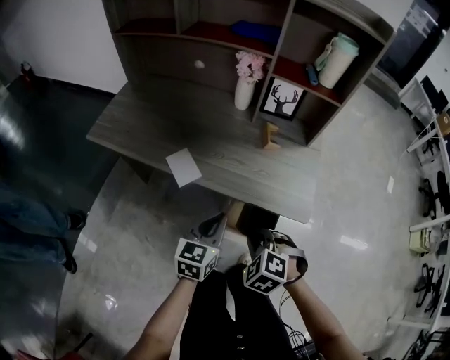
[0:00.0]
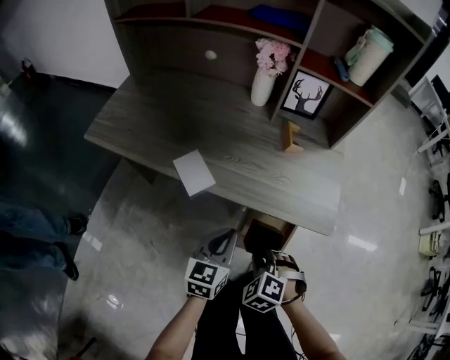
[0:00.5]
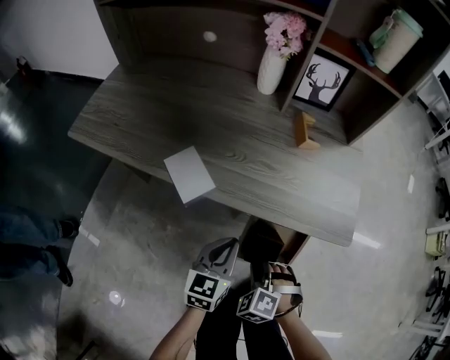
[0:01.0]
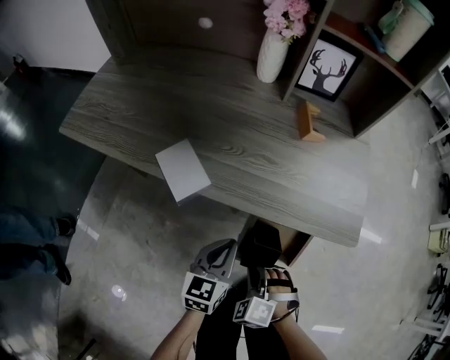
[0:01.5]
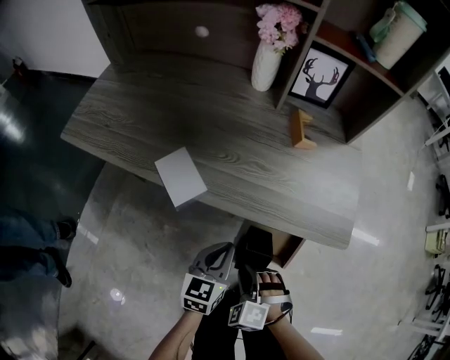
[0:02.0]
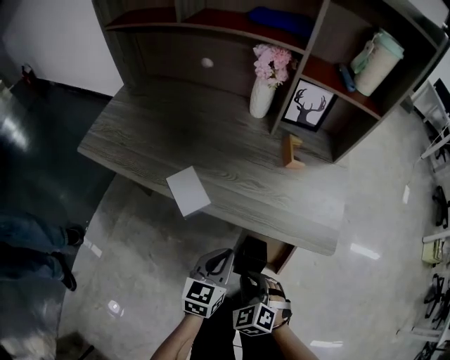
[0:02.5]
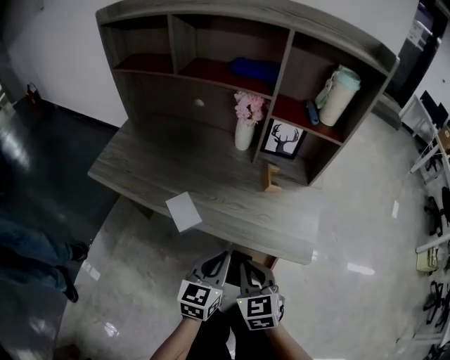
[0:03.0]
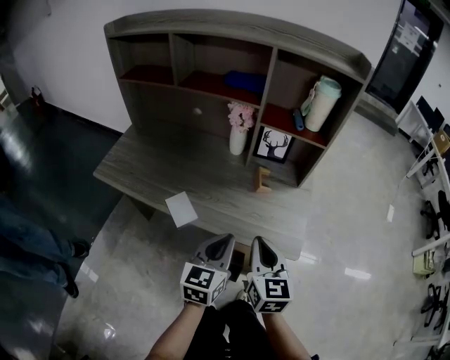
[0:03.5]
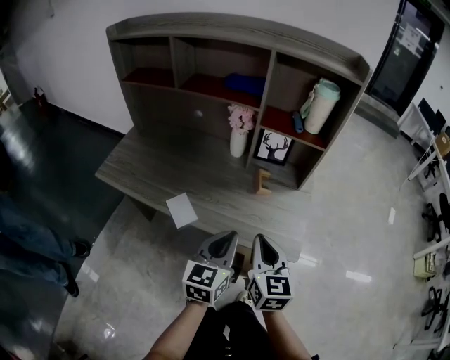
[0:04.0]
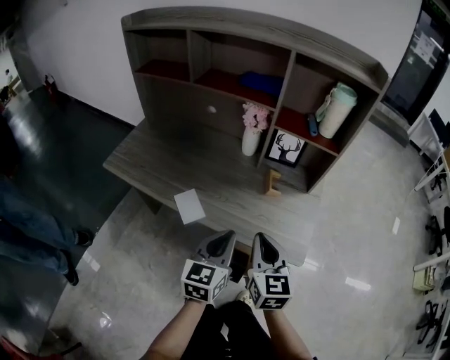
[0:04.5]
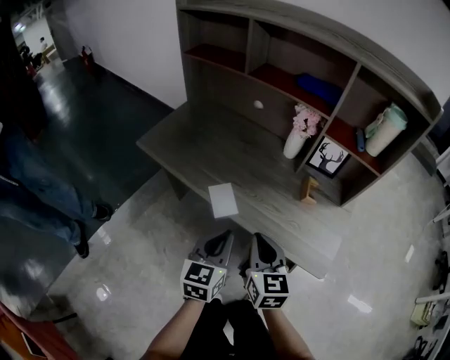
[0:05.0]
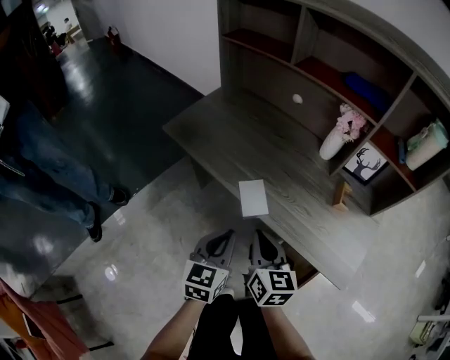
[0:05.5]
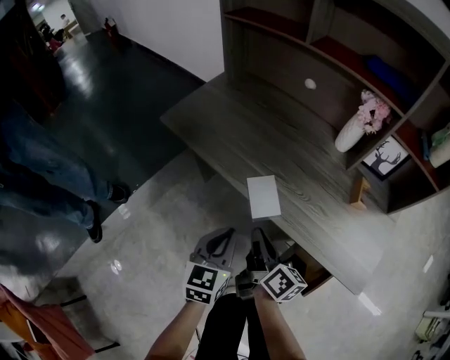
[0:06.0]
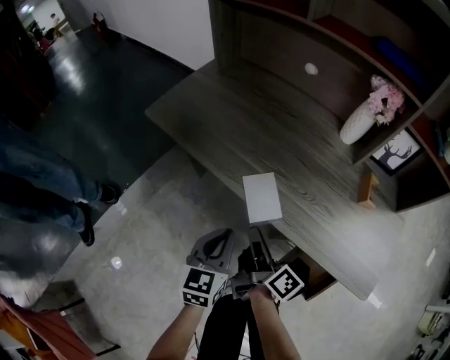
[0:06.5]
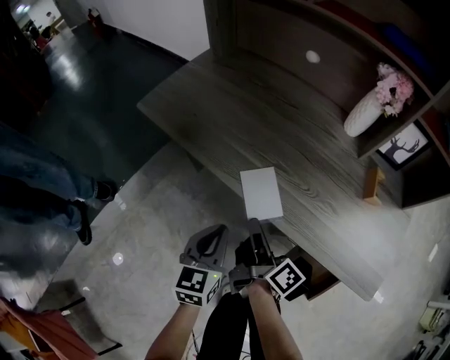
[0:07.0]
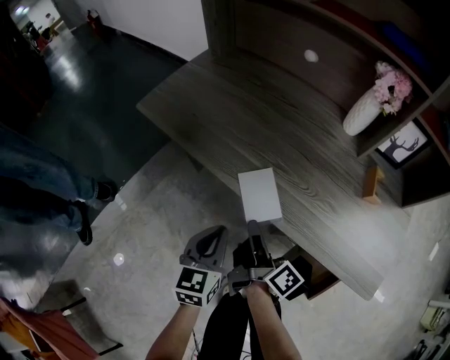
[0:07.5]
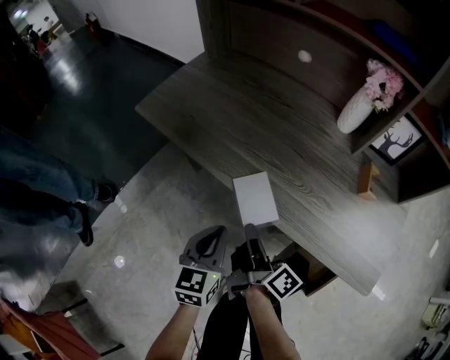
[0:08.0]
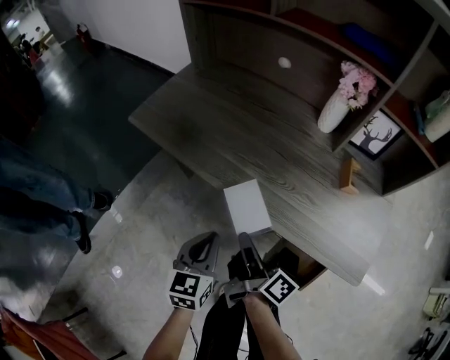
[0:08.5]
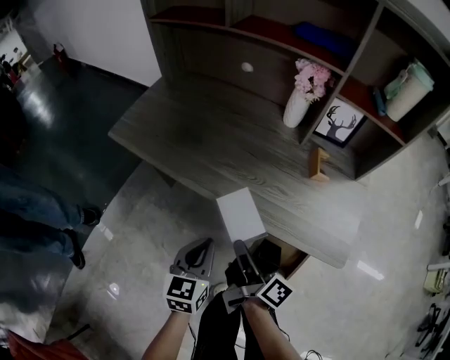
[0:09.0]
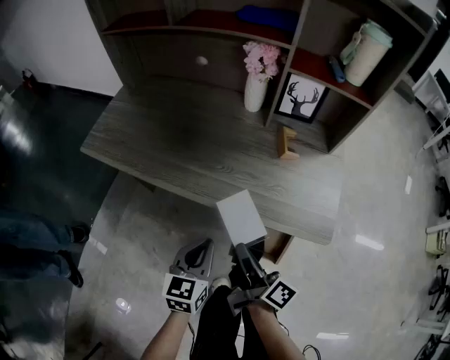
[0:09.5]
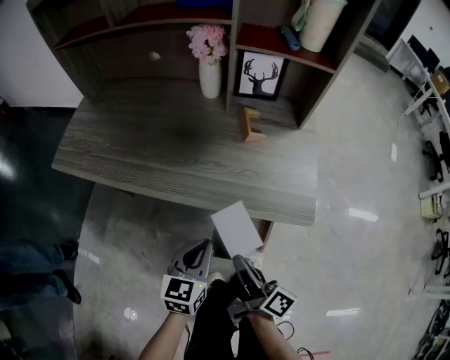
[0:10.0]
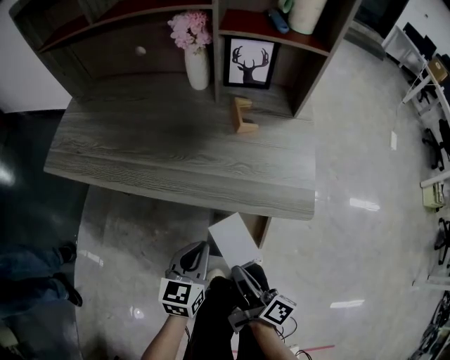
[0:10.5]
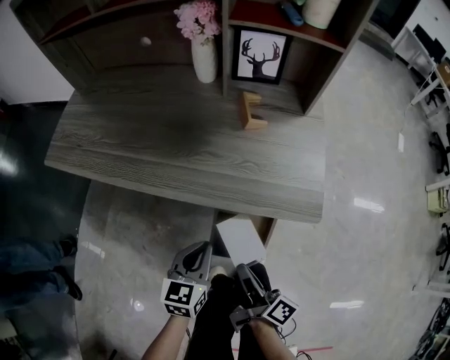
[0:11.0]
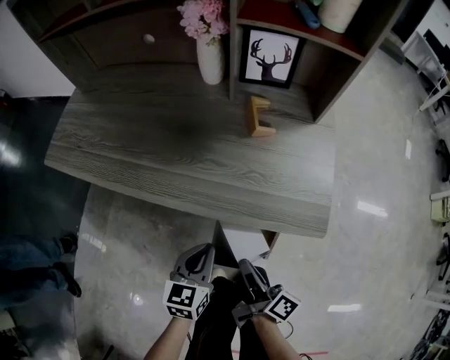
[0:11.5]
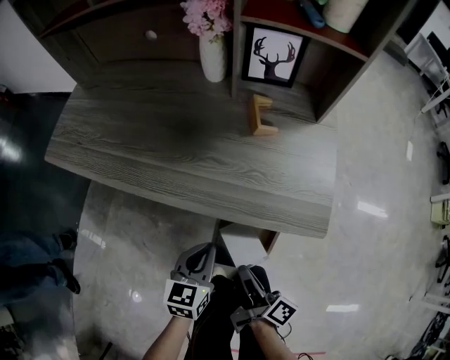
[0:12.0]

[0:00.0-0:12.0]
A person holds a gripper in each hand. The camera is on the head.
0:00.0 to 0:02.0: The grippers both shift downward by approximately 20 cm. The right gripper opens up.
0:02.0 to 0:04.0: Both grippers move upward, about 30 cm. The right gripper twists approximately 60 degrees clockwise, seen from behind, and closes.
0:04.0 to 0:06.0: The left gripper ends up approximately 25 cm from where it was, and rotates some 30 degrees. Meanwhile the right gripper moves some 30 cm, and twists about 50 degrees clockwise, seen from behind.
0:06.0 to 0:08.0: The grippers both shift downward by roughly 5 cm. The right gripper turns by roughly 20 degrees.
0:08.0 to 0:10.0: The grippers both shift to the right and backward by roughly 25 cm. The left gripper rotates roughly 30 degrees.
0:10.0 to 0:12.0: The grippers both shift downward by approximately 5 cm.

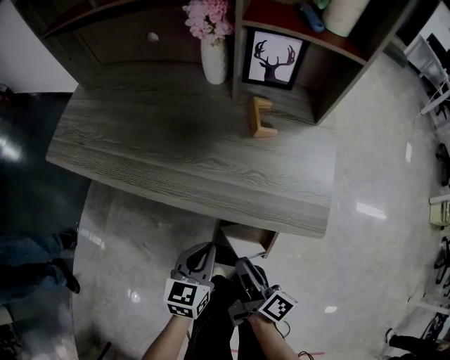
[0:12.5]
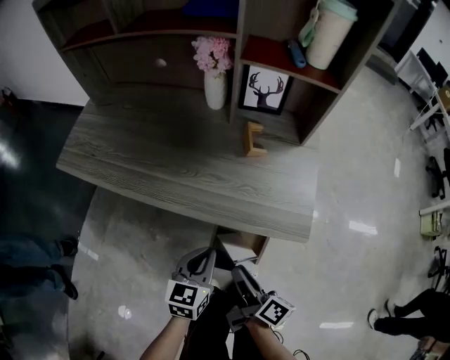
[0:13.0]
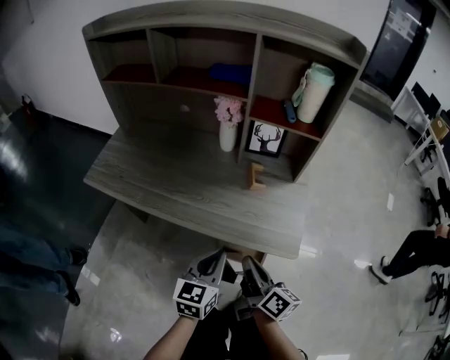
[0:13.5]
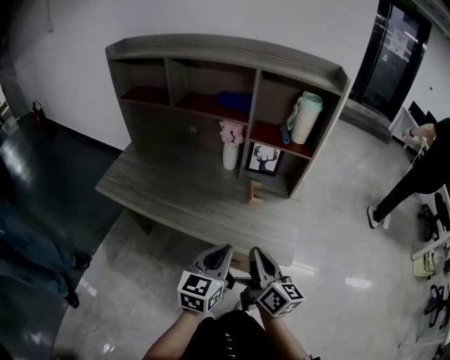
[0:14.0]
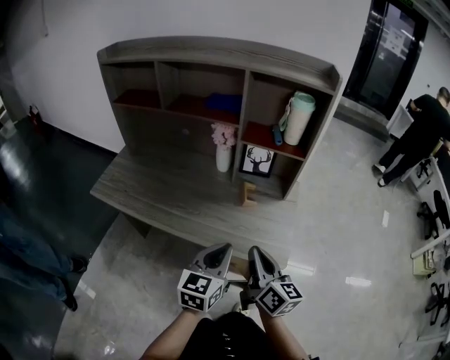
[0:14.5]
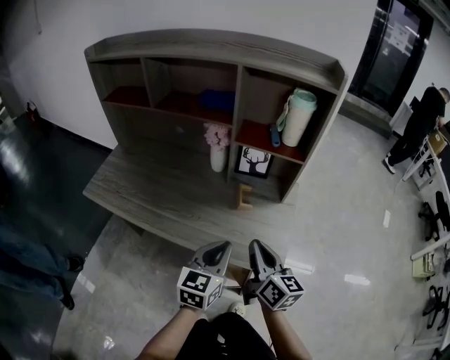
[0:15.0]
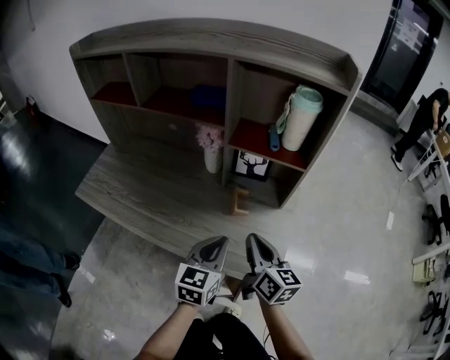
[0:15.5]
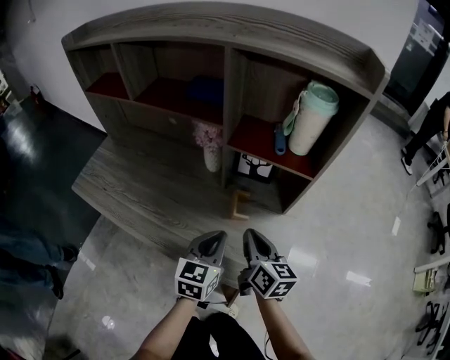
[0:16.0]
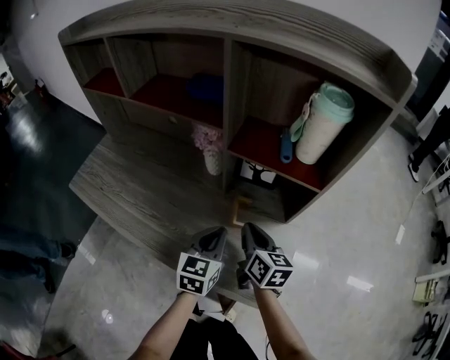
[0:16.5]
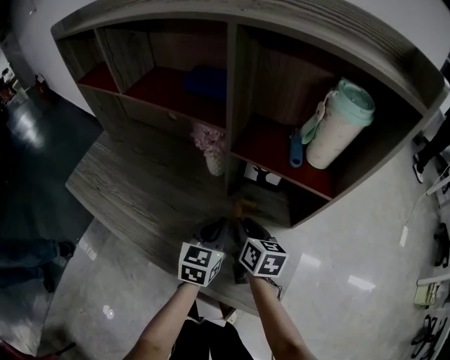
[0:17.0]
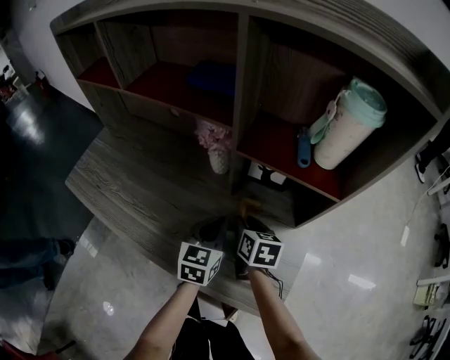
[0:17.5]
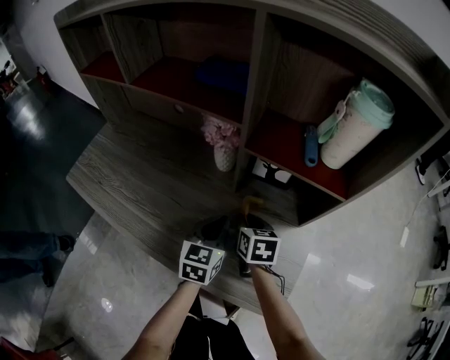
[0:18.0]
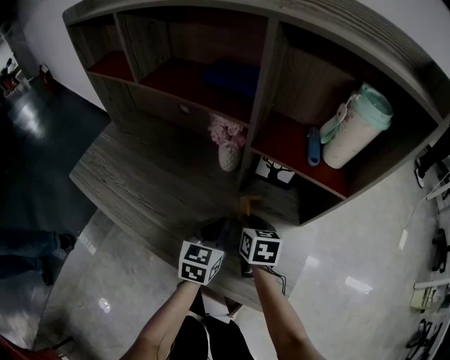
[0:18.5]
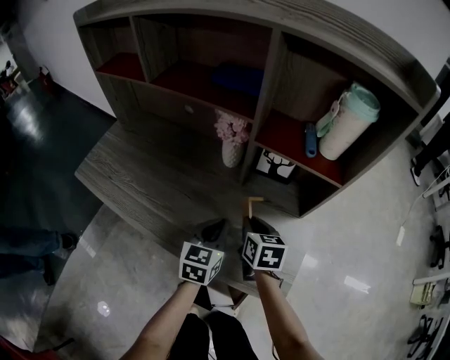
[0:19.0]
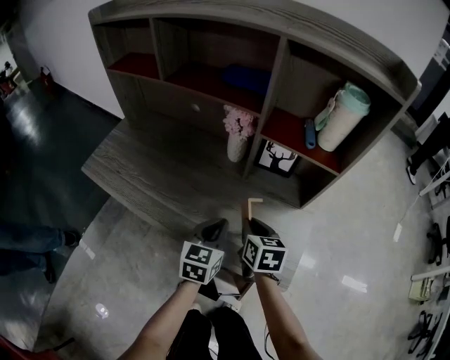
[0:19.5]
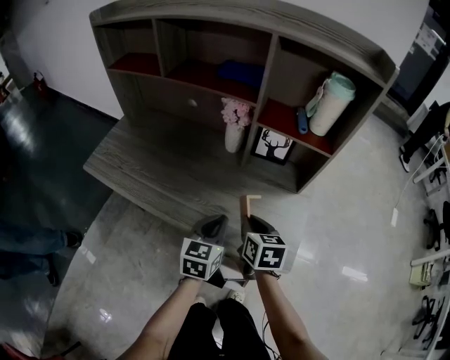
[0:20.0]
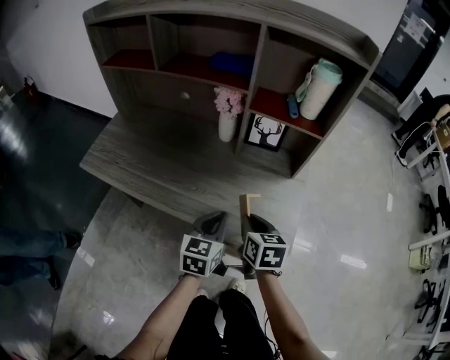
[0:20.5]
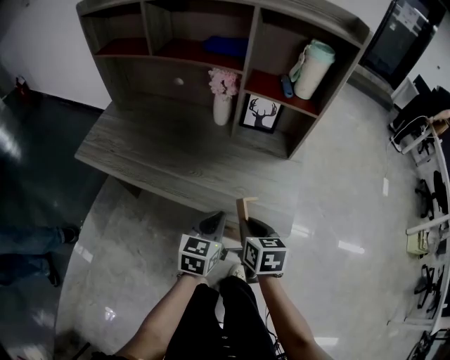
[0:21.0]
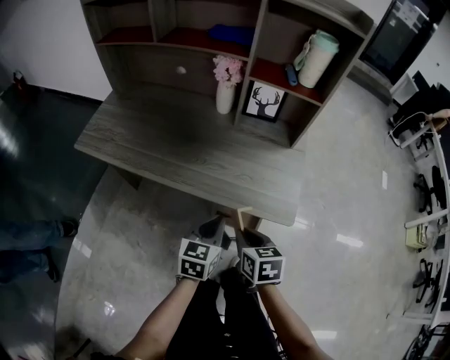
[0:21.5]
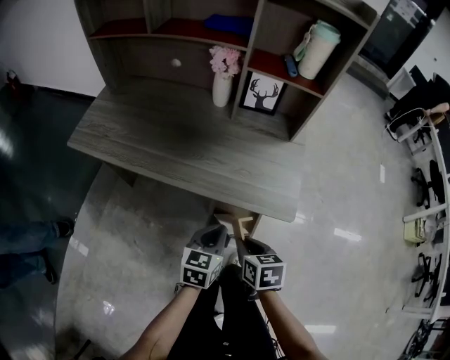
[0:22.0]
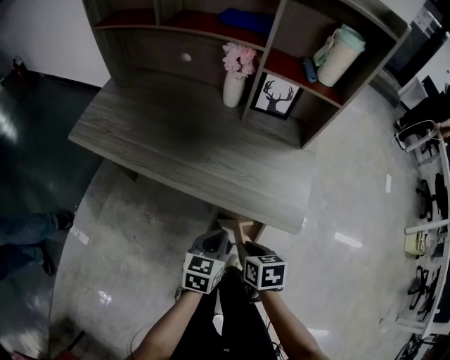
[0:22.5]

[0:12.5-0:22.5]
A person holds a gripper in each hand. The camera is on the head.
0:12.5 to 0:14.5: The two grippers go about 25 cm upward. The right gripper rolls counterclockwise, seen from behind, by about 40 degrees, and closes.
0:14.5 to 0:16.5: The grippers both shift forward and downward by approximately 25 cm.
0:16.5 to 0:18.5: The left gripper shifts by about 5 cm, while the right gripper is displaced downward by approximately 10 cm, and rotates about 20 degrees.
0:18.5 to 0:20.5: The left gripper shifts approximately 15 cm backward. Meanwhile the right gripper is displaced backward and upward by approximately 20 cm.
0:20.5 to 0:22.5: The grippers both shift backward and downward by roughly 15 cm. The right gripper changes its angle by roughly 20 degrees.

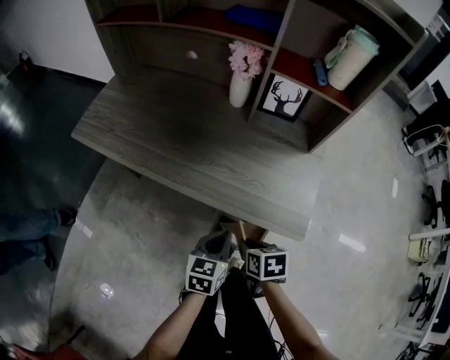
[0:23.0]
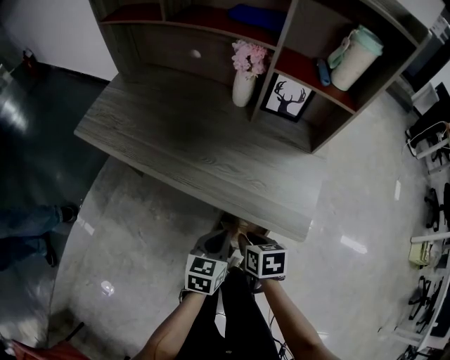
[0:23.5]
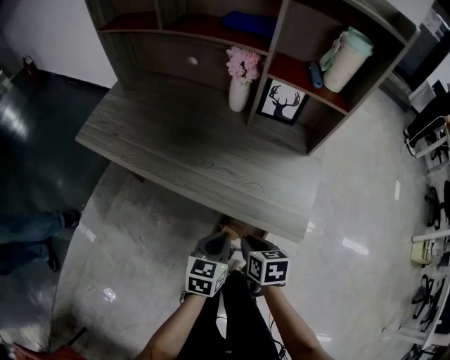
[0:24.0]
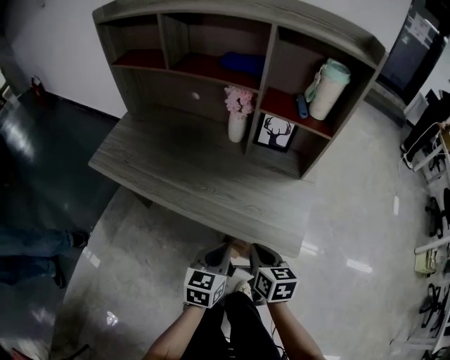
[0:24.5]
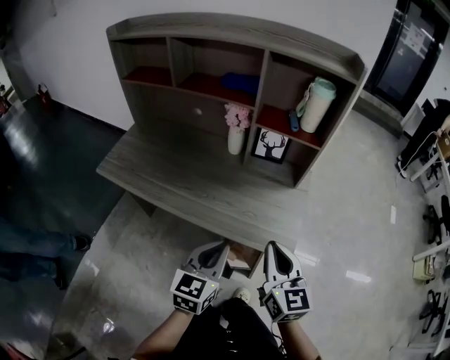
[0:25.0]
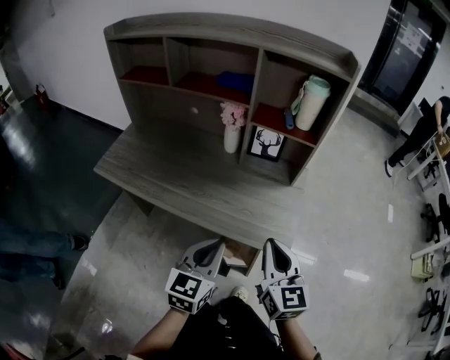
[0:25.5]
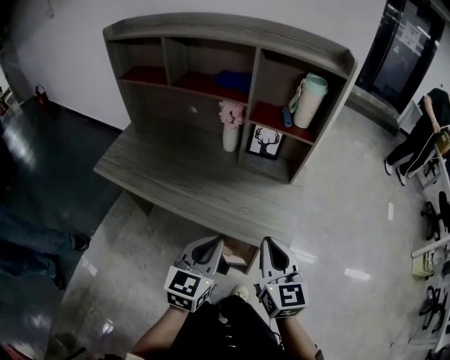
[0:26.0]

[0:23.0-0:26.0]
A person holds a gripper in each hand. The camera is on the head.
0:23.0 to 0:24.5: The grippers both shift upward by about 10 cm. The right gripper turns by approximately 30 degrees.
0:24.5 to 0:26.0: Both grippers travel together upward, some 15 cm. The right gripper changes its angle by approximately 30 degrees.

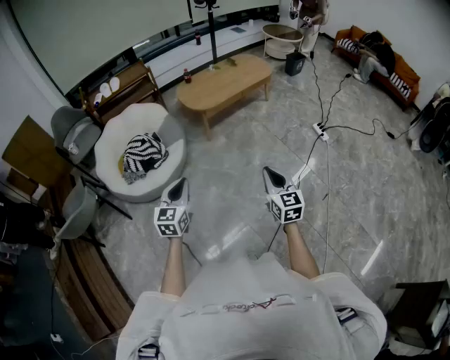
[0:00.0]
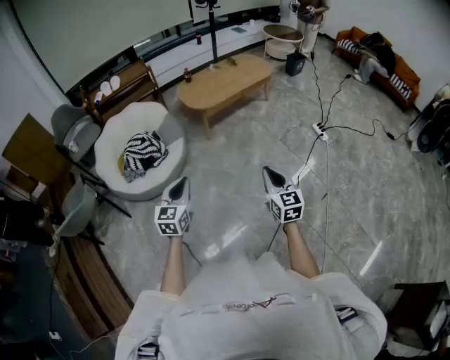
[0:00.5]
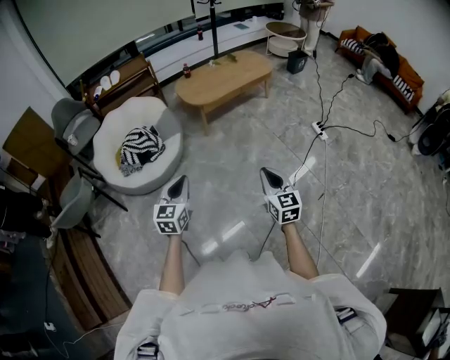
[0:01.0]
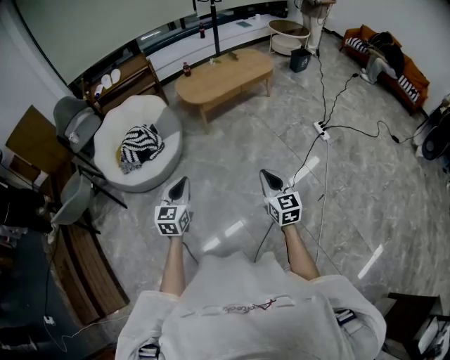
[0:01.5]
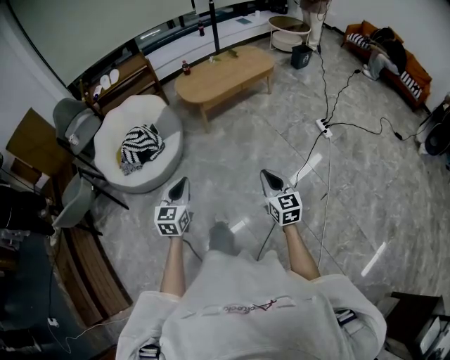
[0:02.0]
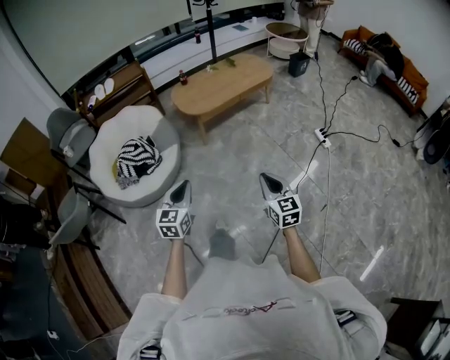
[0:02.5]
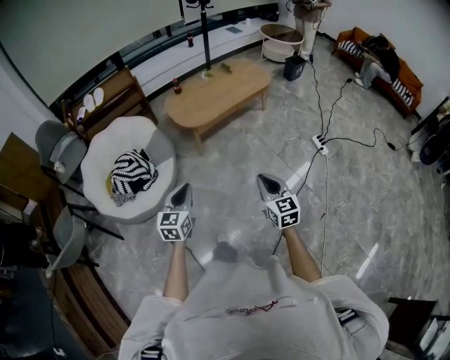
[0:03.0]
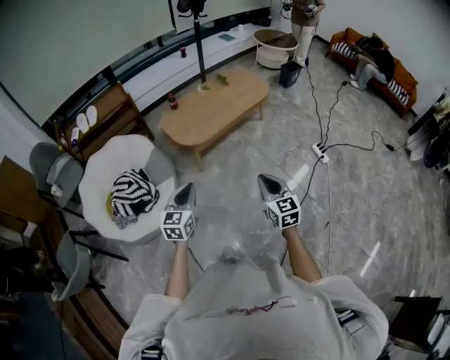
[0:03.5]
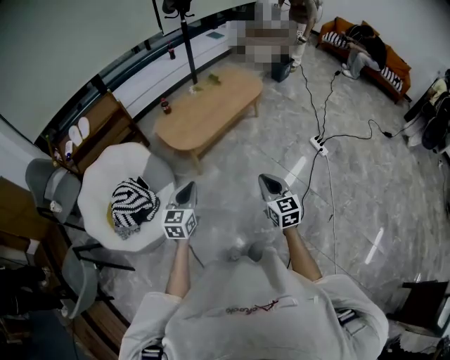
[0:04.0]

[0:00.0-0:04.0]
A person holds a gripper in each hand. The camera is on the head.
0:00.0 to 0:02.0: The two grippers go about 10 cm to the right.
0:02.0 to 0:04.0: The grippers both shift forward by about 40 cm.
